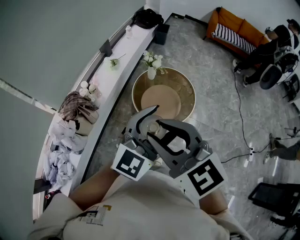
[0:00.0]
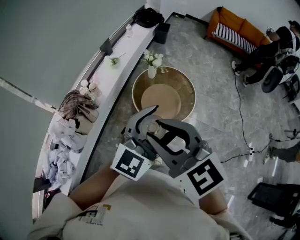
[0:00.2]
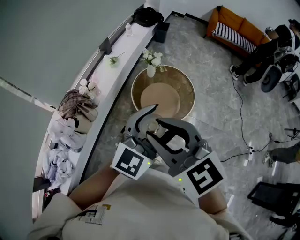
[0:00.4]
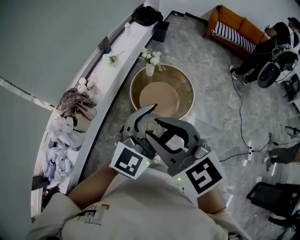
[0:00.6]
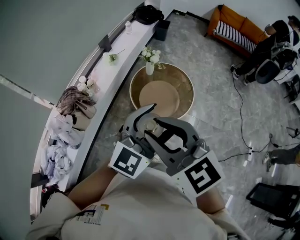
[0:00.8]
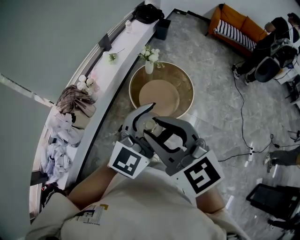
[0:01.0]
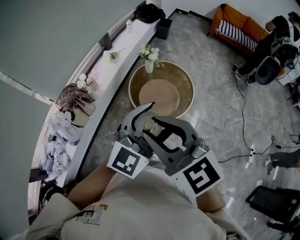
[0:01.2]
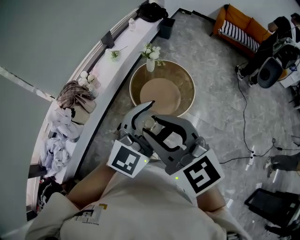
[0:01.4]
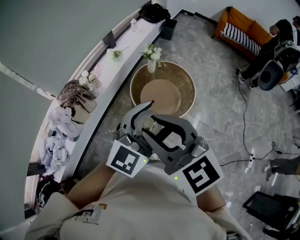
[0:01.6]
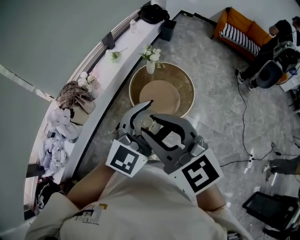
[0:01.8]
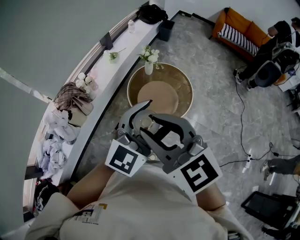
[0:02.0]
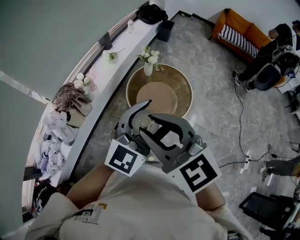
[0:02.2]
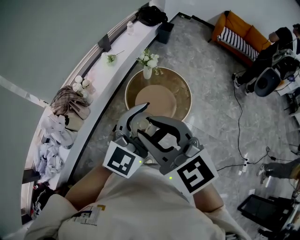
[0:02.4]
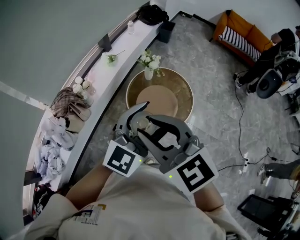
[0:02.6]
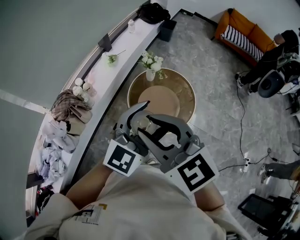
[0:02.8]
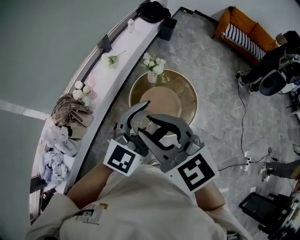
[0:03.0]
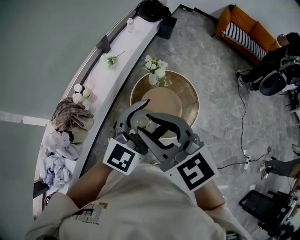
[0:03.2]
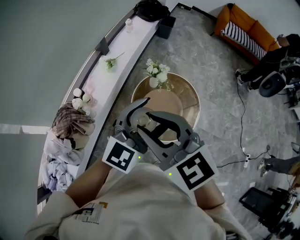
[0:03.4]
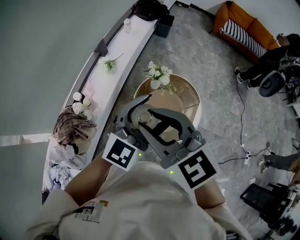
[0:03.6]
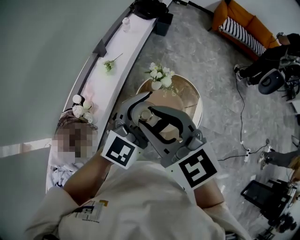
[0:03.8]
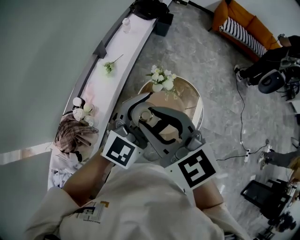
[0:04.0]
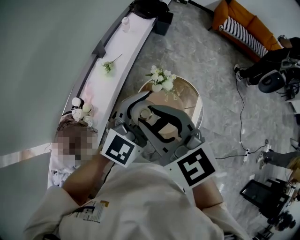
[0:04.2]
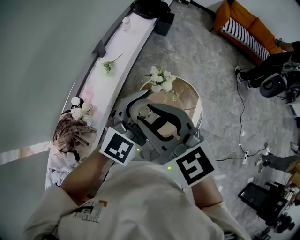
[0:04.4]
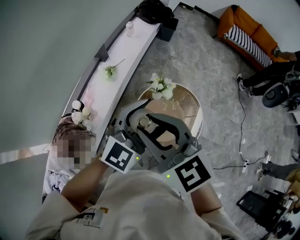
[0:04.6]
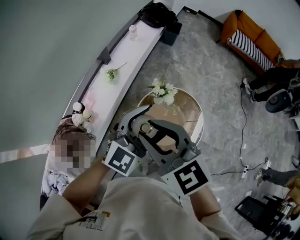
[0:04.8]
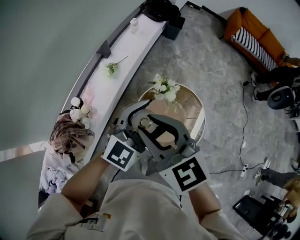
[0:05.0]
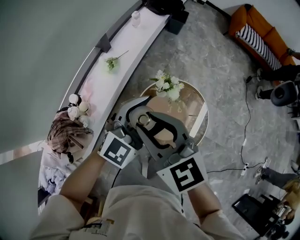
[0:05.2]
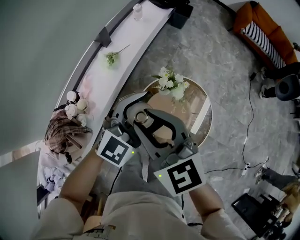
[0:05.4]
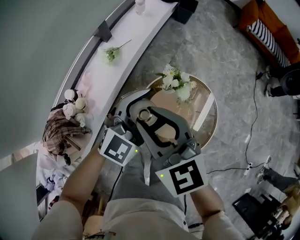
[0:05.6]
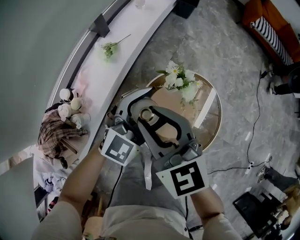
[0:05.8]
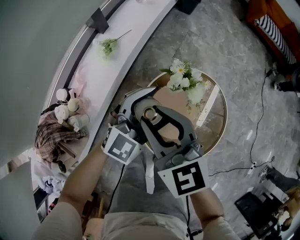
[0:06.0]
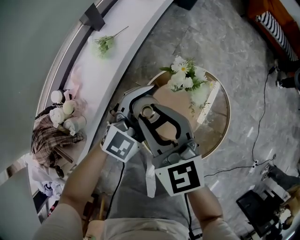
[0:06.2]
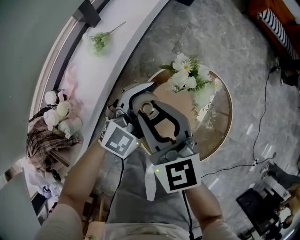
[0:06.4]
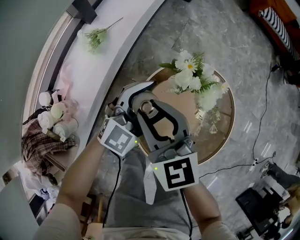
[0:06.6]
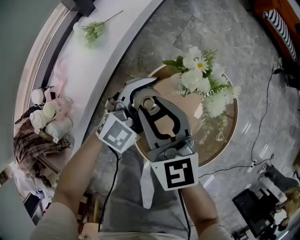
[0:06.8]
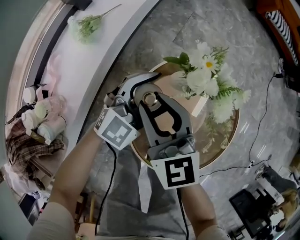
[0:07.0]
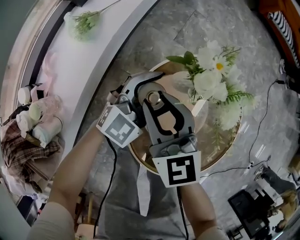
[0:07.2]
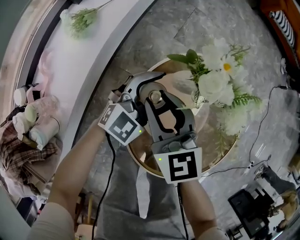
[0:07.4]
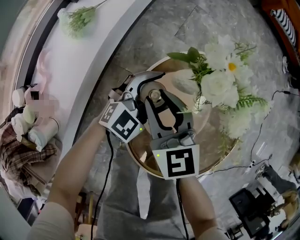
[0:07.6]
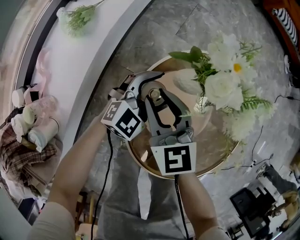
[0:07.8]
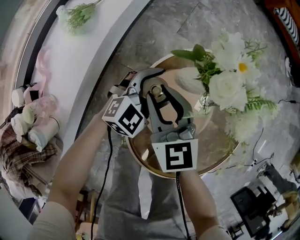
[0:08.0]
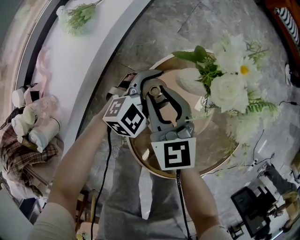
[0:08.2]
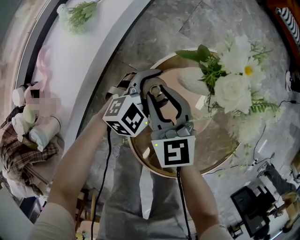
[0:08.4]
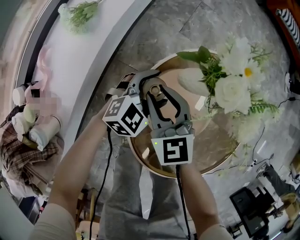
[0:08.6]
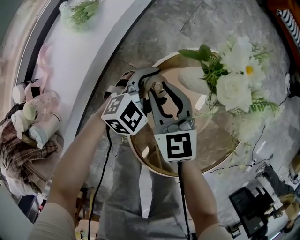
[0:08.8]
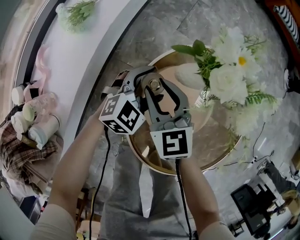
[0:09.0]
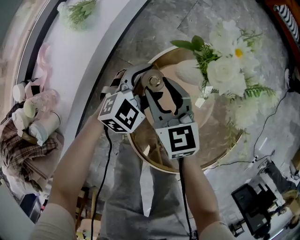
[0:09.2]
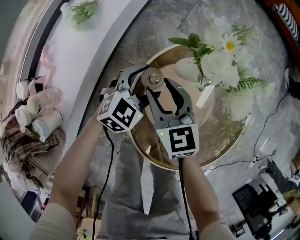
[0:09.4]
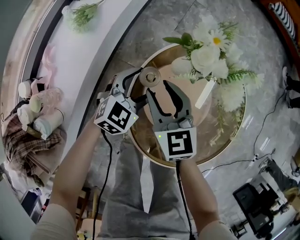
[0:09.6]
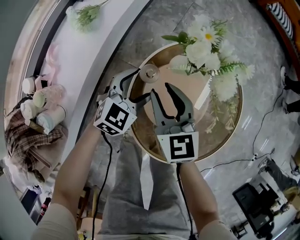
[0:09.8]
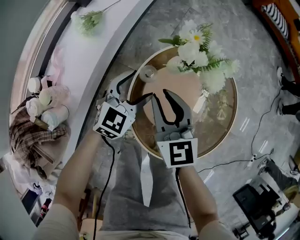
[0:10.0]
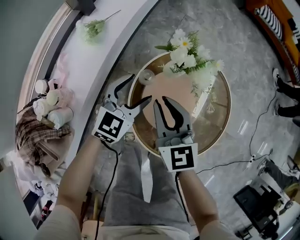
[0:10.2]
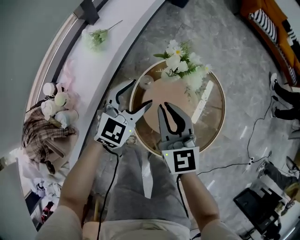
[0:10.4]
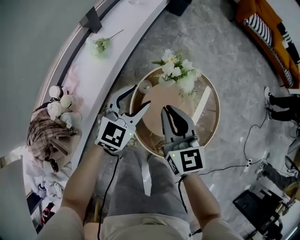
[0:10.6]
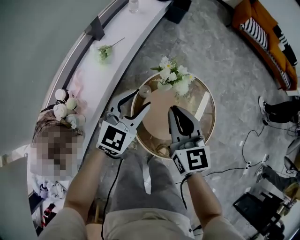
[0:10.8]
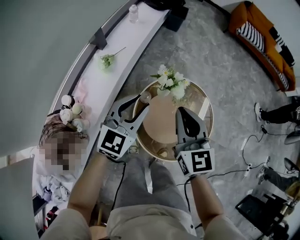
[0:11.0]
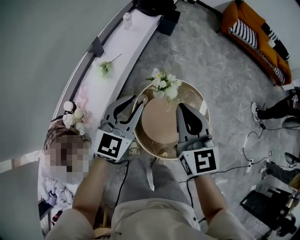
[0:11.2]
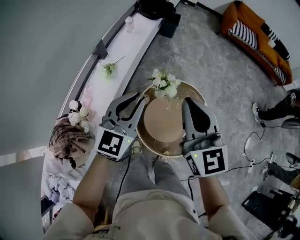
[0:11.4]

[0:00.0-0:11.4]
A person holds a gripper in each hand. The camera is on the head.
0:00.0 to 0:01.4: Both grippers travel together to the right, approximately 10 cm.
0:01.4 to 0:02.8: The two grippers go approximately 15 cm forward.
0:02.8 to 0:04.2: Both grippers travel together forward and to the left, some 30 cm.
0:04.2 to 0:05.6: The grippers both shift downward and forward by approximately 20 cm.
0:05.6 to 0:07.2: The two grippers go about 35 cm downward.
0:07.2 to 0:08.6: Both grippers move downward, about 10 cm. The left gripper swivels roughly 20 degrees.
0:08.6 to 0:10.0: The grippers both shift upward by about 10 cm. The left gripper swivels some 20 degrees.
0:10.0 to 0:11.4: The two grippers go some 40 cm upward. The left gripper swivels approximately 20 degrees, and closes up. The right gripper closes up.

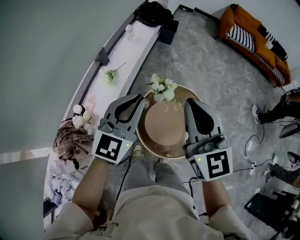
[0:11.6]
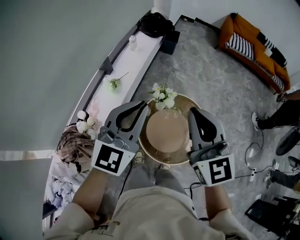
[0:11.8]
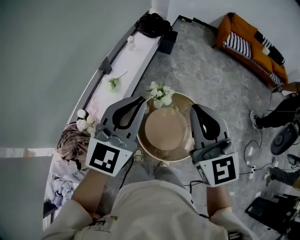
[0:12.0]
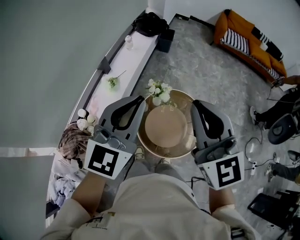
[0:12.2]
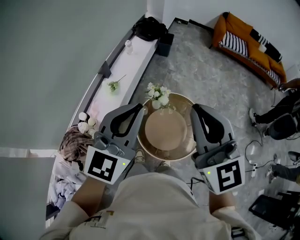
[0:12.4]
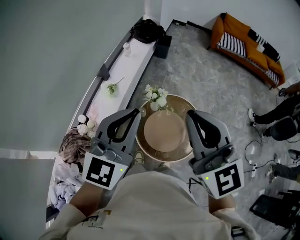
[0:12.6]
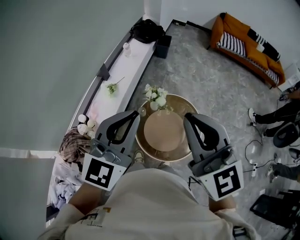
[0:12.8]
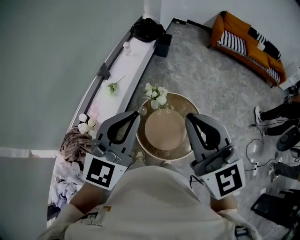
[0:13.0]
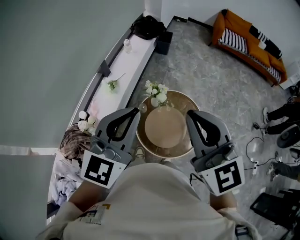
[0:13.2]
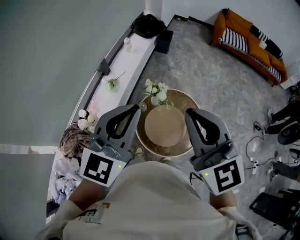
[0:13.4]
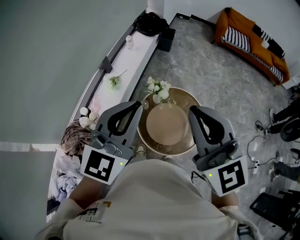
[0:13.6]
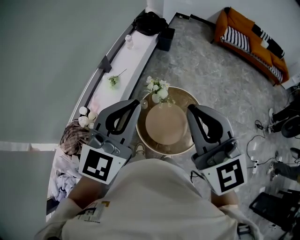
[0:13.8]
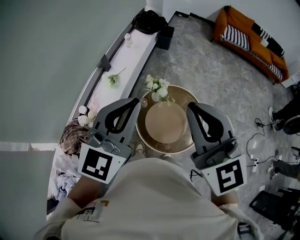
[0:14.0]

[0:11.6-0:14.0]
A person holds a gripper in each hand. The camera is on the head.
0:11.6 to 0:12.8: The two grippers go about 15 cm upward and backward.
0:12.8 to 0:14.0: The grippers move only a little.

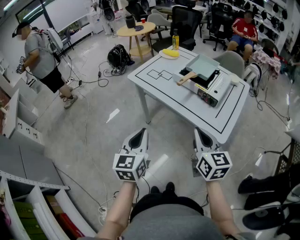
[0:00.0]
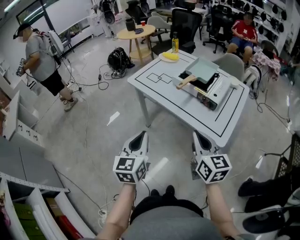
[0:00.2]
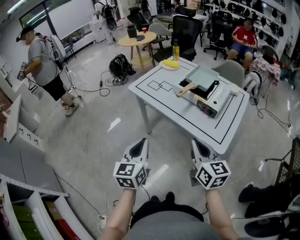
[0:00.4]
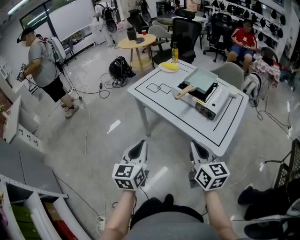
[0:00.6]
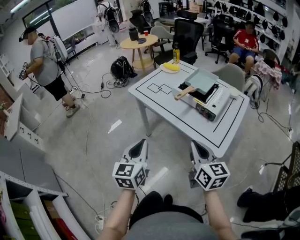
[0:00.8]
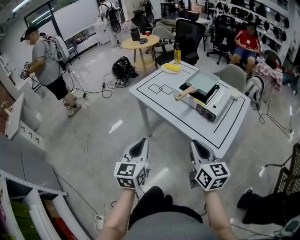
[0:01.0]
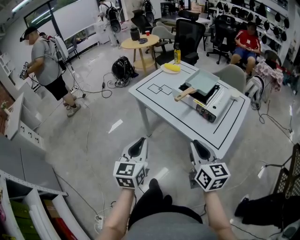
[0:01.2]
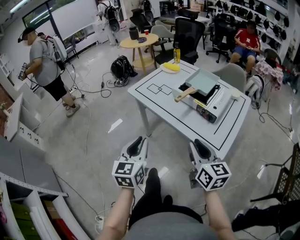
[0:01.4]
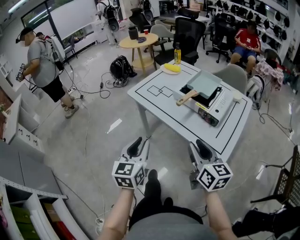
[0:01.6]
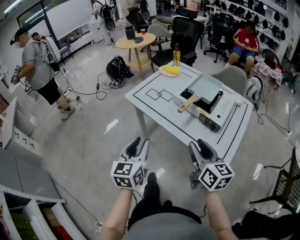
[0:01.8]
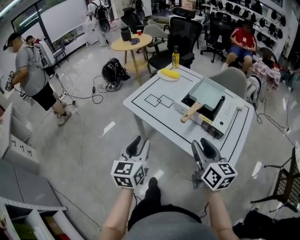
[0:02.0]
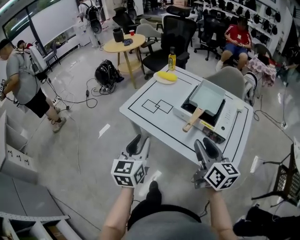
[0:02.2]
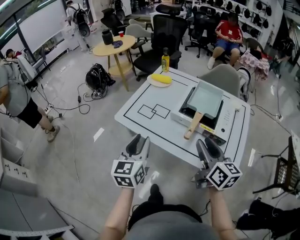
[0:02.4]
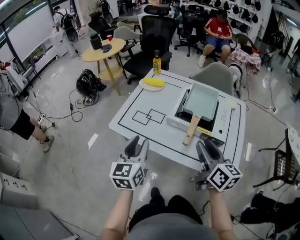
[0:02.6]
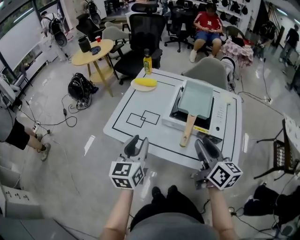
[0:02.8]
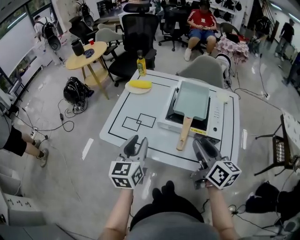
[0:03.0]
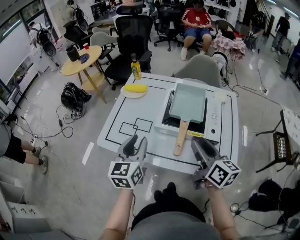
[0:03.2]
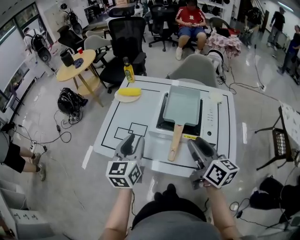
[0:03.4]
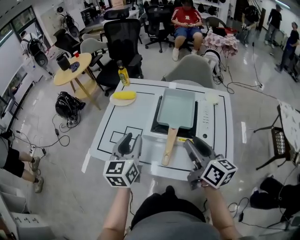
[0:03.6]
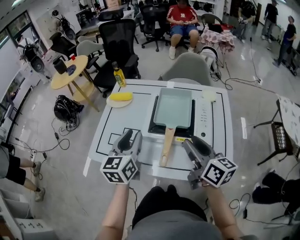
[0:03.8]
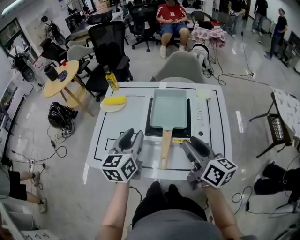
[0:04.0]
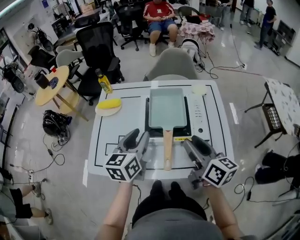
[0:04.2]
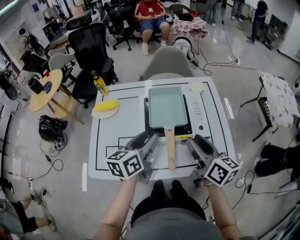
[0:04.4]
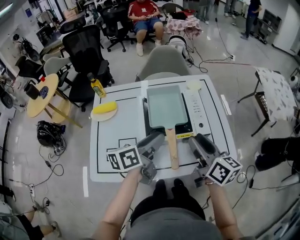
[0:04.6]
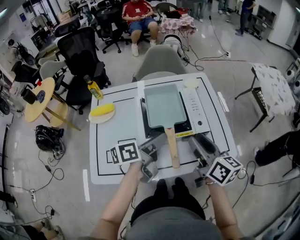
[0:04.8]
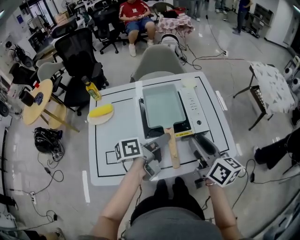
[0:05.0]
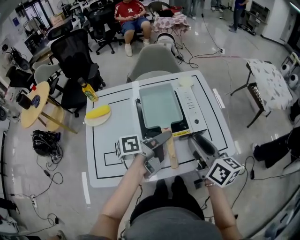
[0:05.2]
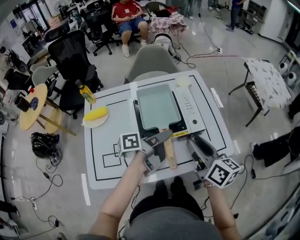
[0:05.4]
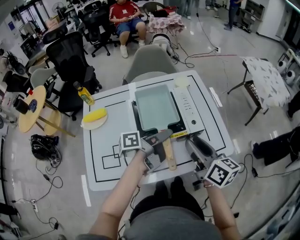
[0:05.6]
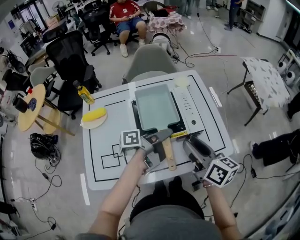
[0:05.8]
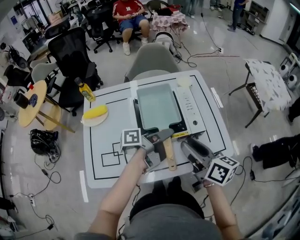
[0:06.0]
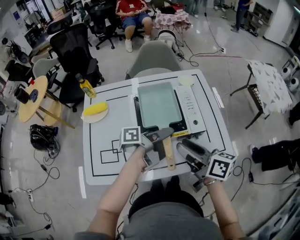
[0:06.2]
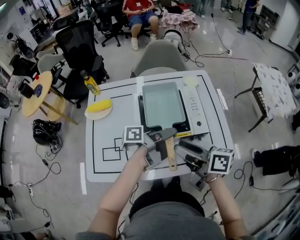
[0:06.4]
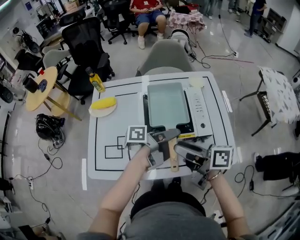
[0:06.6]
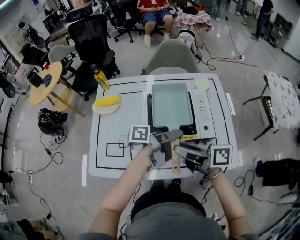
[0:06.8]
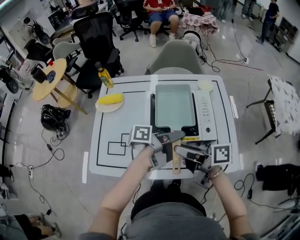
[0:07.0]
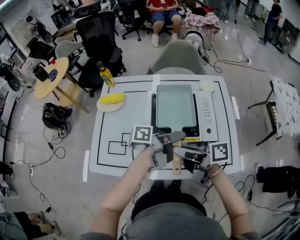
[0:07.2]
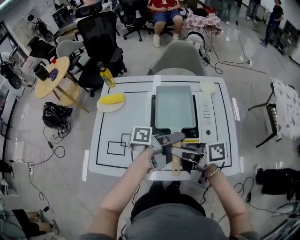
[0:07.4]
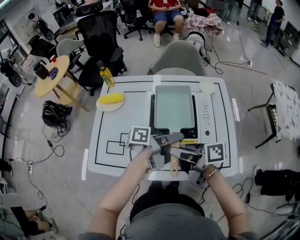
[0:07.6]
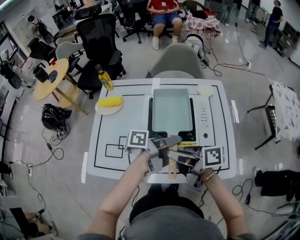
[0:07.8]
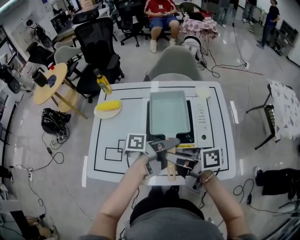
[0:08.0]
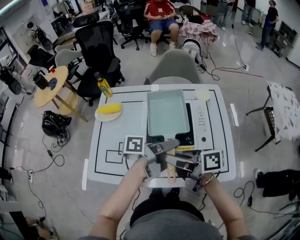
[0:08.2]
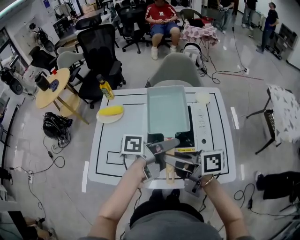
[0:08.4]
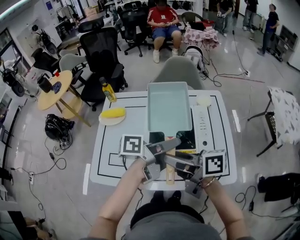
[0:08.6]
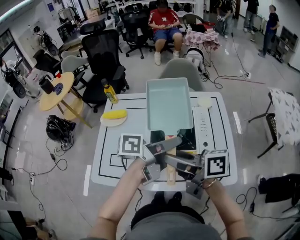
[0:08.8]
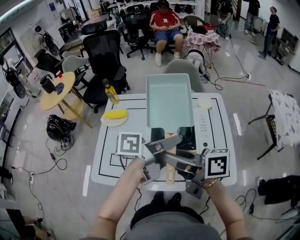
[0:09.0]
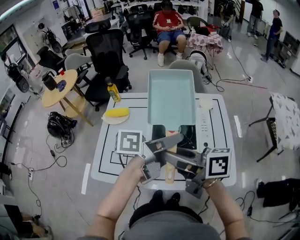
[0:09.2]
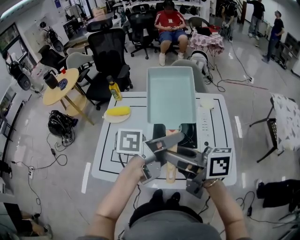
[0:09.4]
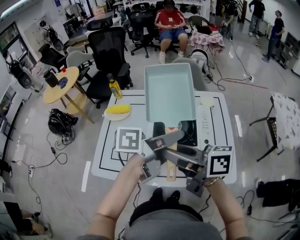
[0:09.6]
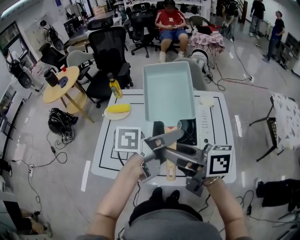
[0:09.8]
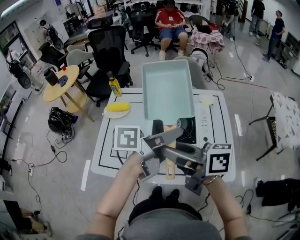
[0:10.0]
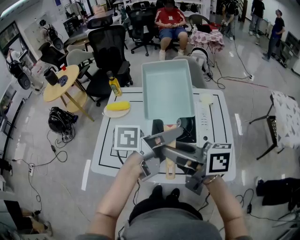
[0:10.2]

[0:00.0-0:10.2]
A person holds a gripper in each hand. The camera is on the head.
0:00.0 to 0:01.4: The right gripper opens up.
0:01.4 to 0:03.0: Both grippers travel together forward, roughly 25 cm. The left gripper turns by some 20 degrees; the right gripper swivels approximately 30 degrees, and opens up.
0:03.0 to 0:04.4: The left gripper ends up approximately 15 cm from where it was, and changes its angle by about 40 degrees, while the right gripper moves some 5 cm.
0:04.4 to 0:05.8: The left gripper moves to the right, about 10 cm, and rotates around the line of its fingers by approximately 50 degrees, counterclockwise from behind.
0:05.8 to 0:07.2: The right gripper moves roughly 10 cm, and rotates some 50 degrees.
0:07.2 to 0:08.8: Both grippers travel together upward, some 10 cm.
0:08.8 to 0:10.2: The right gripper moves about 5 cm; the left gripper shifts approximately 5 cm upward.
